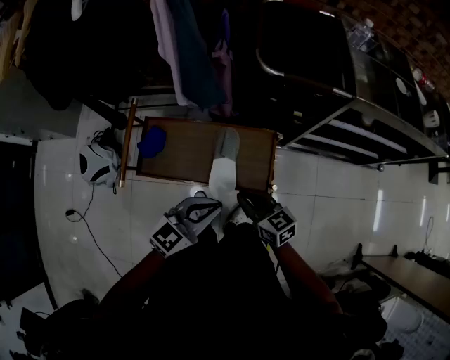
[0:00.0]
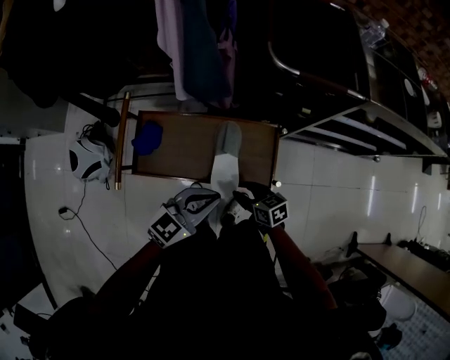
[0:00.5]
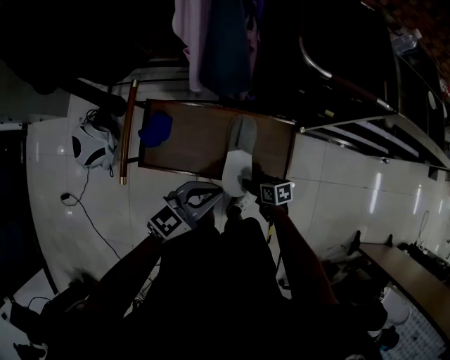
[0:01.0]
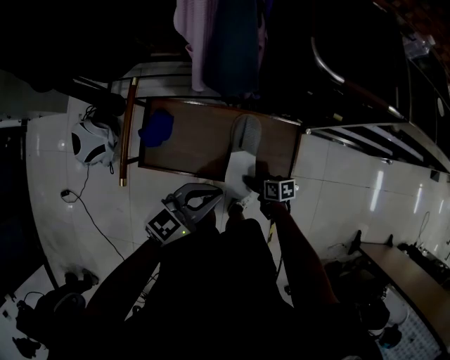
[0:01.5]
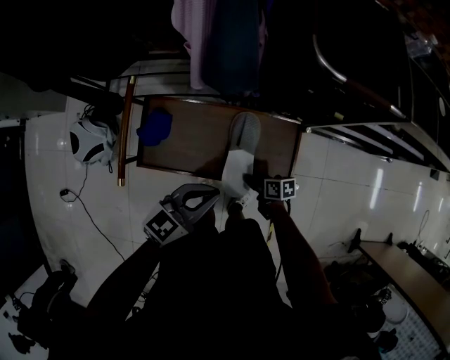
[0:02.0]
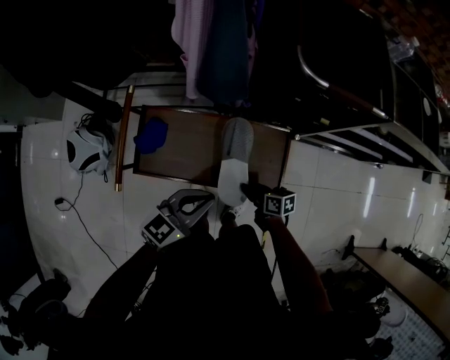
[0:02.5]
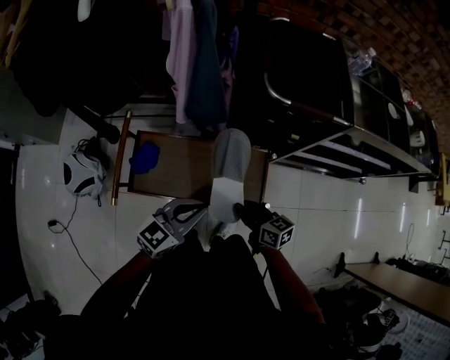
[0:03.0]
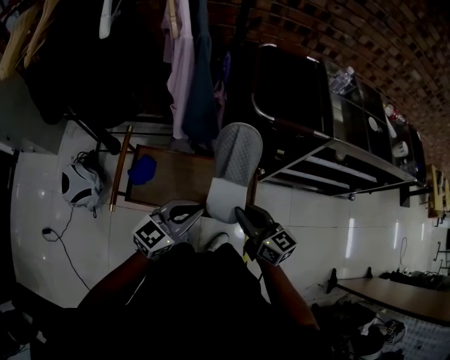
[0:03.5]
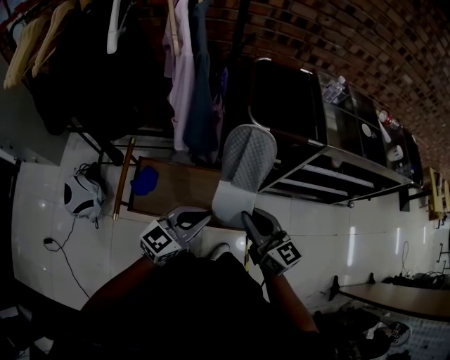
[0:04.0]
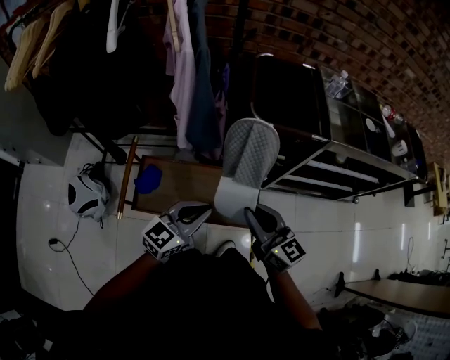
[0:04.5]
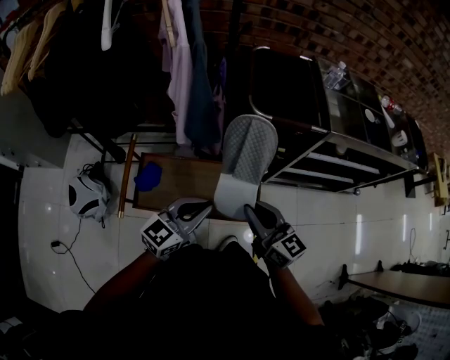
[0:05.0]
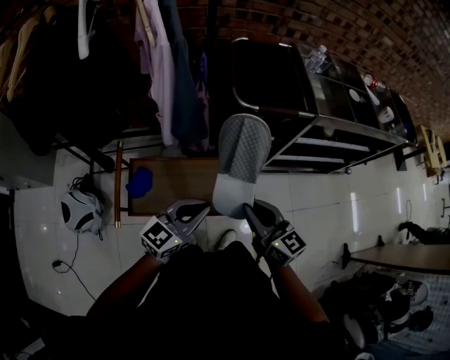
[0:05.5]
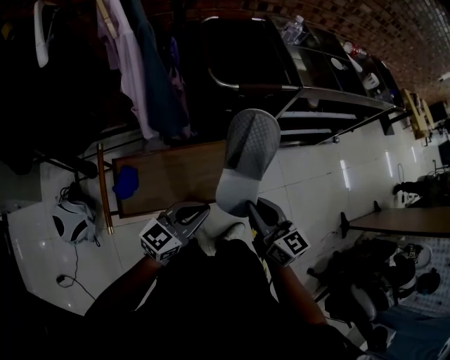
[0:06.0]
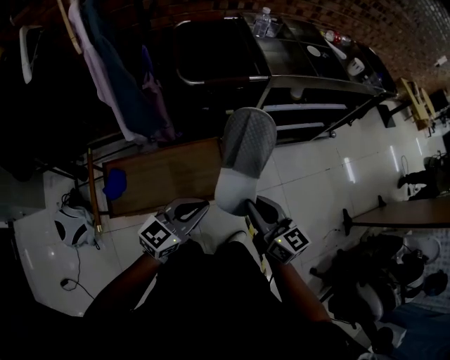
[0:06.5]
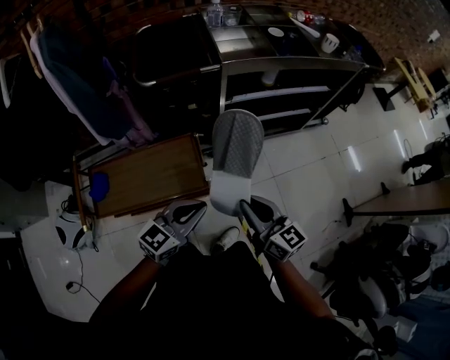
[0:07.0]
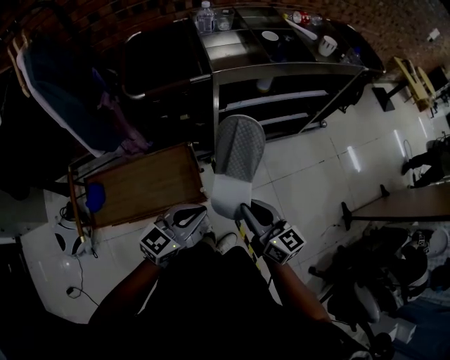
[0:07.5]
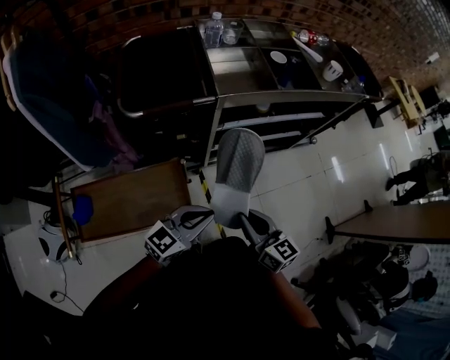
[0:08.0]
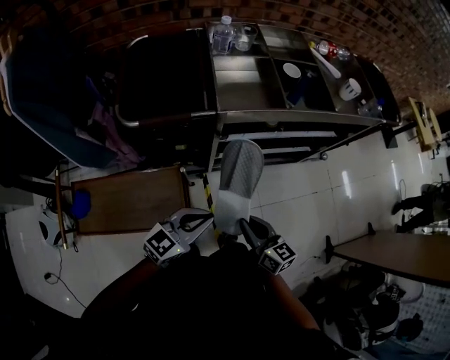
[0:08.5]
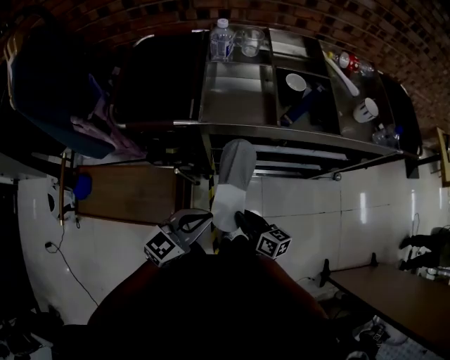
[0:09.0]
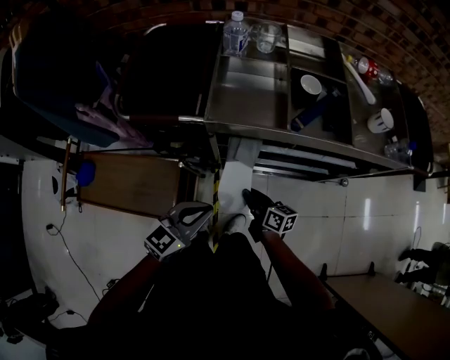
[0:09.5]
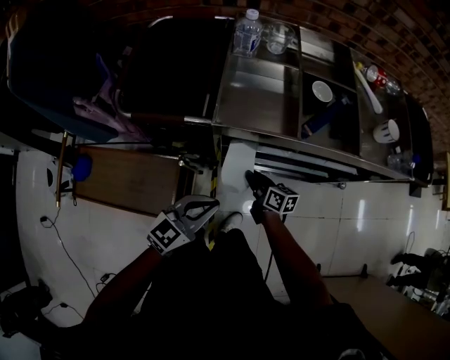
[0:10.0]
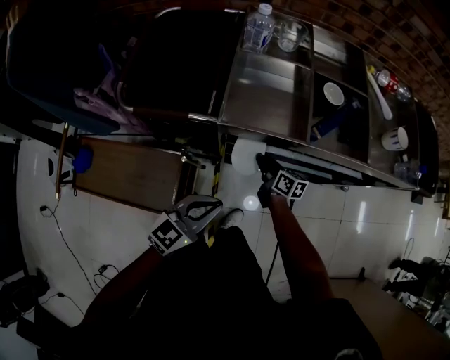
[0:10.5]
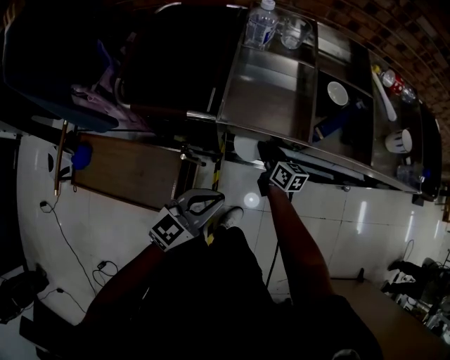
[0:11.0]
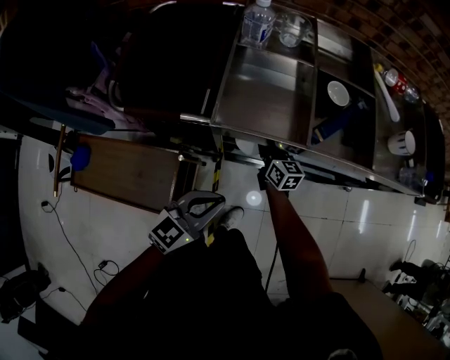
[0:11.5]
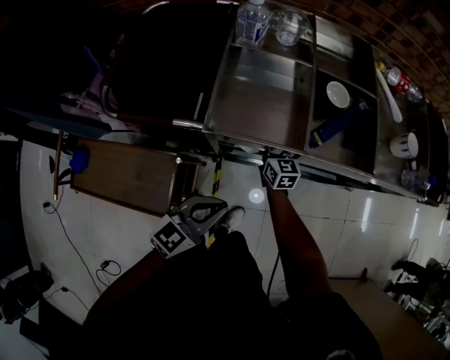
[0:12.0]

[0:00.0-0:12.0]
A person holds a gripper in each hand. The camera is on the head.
0:00.0 to 0:02.0: The left gripper shifts by roughly 15 cm; the right gripper shifts approximately 25 cm downward, rotates roughly 50 degrees, and opens, then closes once more.
0:02.0 to 0:04.0: The left gripper heads upward, covering about 15 cm. Meanwhile the right gripper heads upward, covering some 40 cm, and tilts its fingers about 30 degrees upward.
0:04.0 to 0:06.0: The right gripper changes place by about 5 cm, and rotates about 20 degrees. The left gripper changes place by roughly 5 cm.
0:06.0 to 0:08.0: Both grippers move to the right and forward, some 30 cm.
0:08.0 to 0:10.0: The right gripper travels forward and downward by some 35 cm, and turns by roughly 30 degrees; the left gripper moves forward and to the right, approximately 20 cm, and swivels about 20 degrees.
0:10.0 to 0:12.0: The right gripper is displaced forward by approximately 15 cm, and changes its angle by some 30 degrees, while the left gripper shifts by about 5 cm.

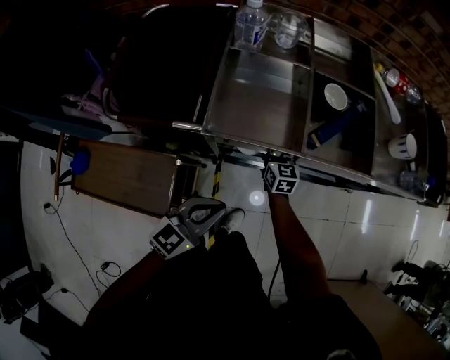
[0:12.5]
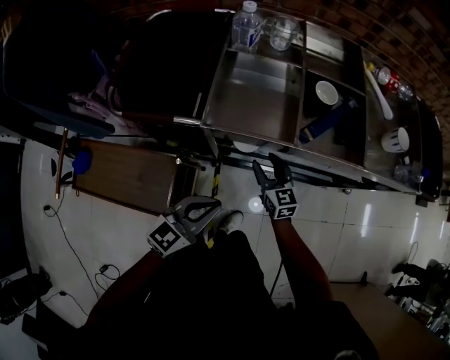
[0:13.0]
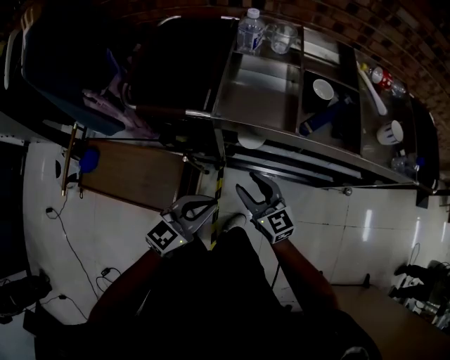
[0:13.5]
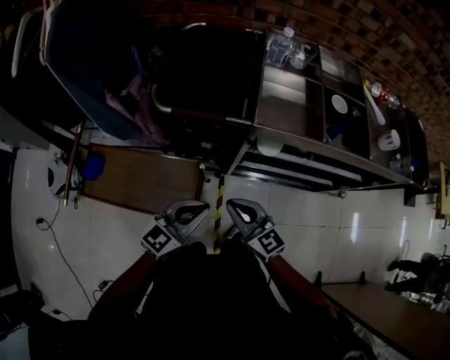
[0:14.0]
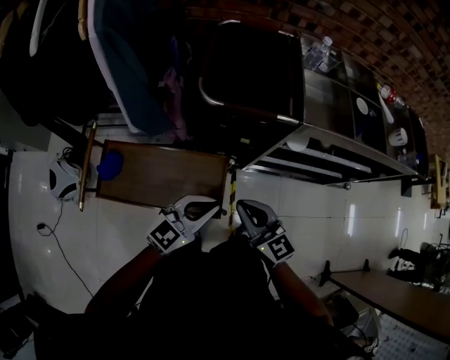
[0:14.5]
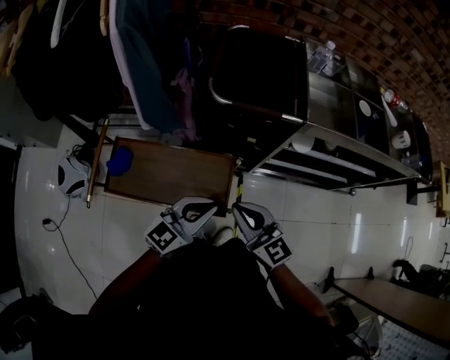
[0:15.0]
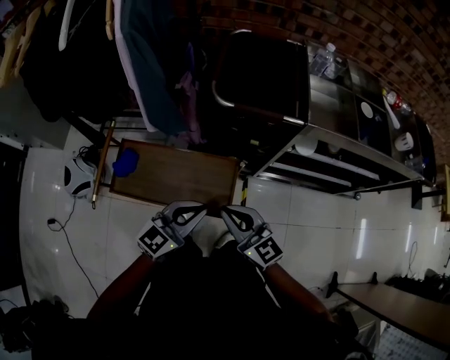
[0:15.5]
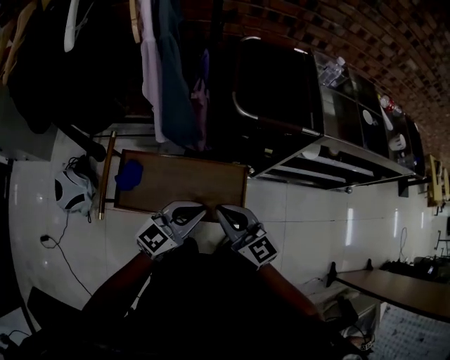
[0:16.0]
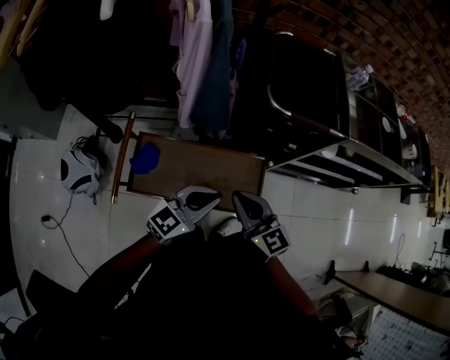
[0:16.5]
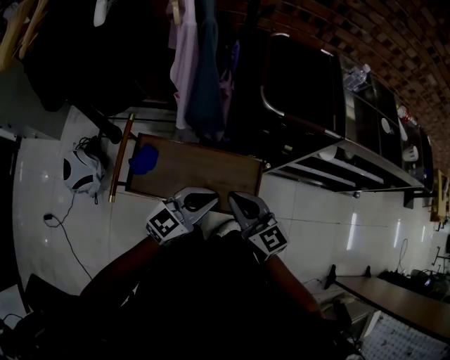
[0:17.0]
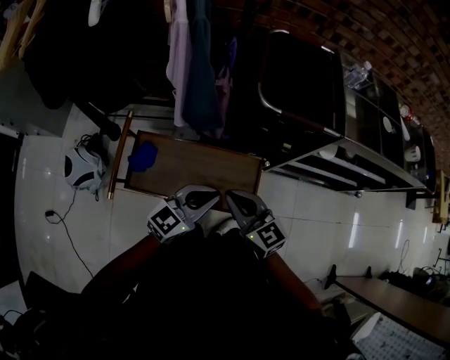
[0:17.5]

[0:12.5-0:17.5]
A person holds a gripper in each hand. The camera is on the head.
0:12.5 to 0:15.0: The left gripper moves to the left and backward, about 35 cm. The right gripper shifts some 60 cm backward, to the left and upward, swivels roughly 30 degrees, and closes up.
0:15.0 to 0:17.5: The two grippers go some 15 cm to the left.

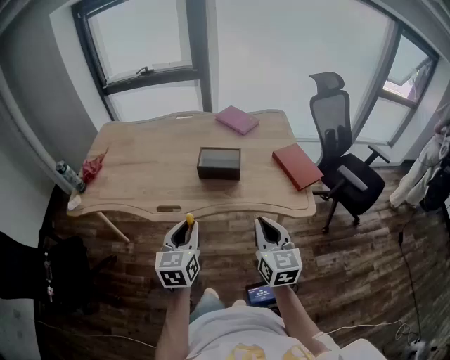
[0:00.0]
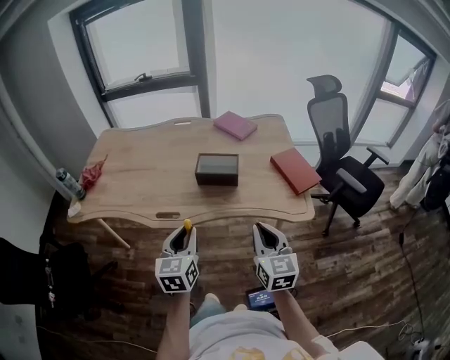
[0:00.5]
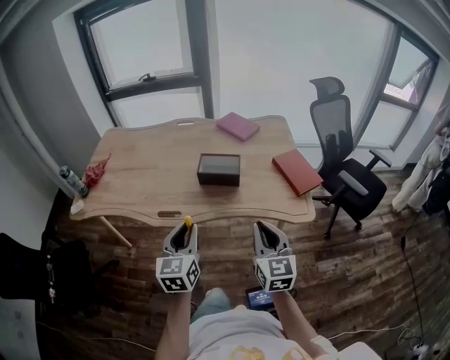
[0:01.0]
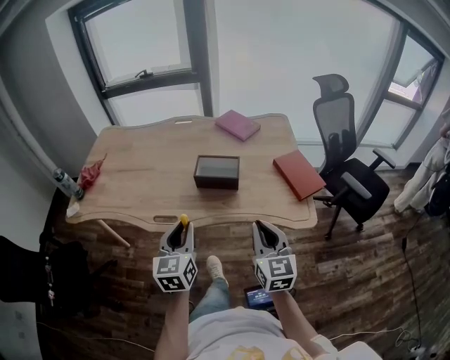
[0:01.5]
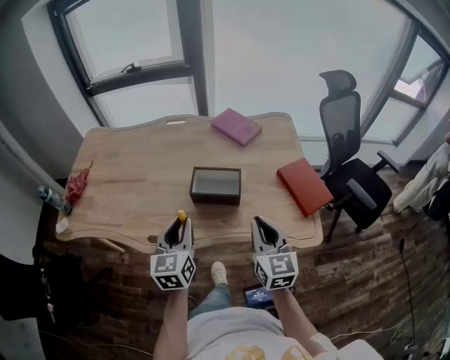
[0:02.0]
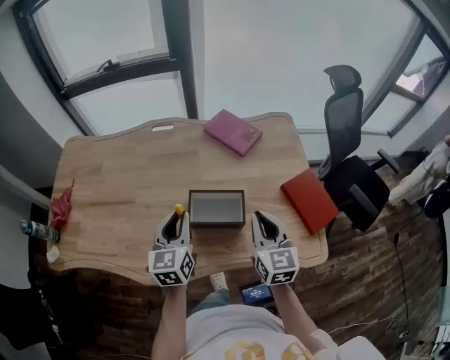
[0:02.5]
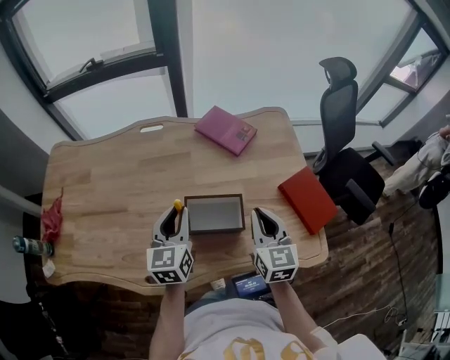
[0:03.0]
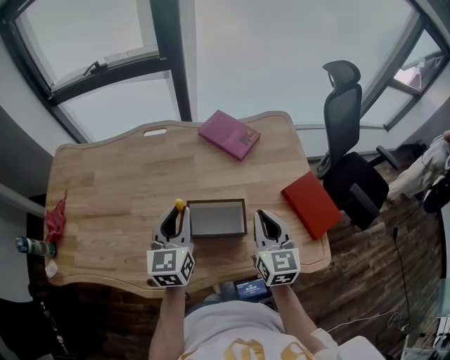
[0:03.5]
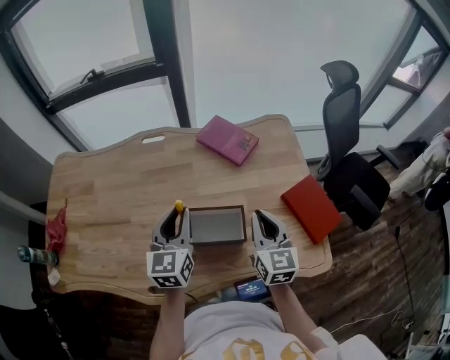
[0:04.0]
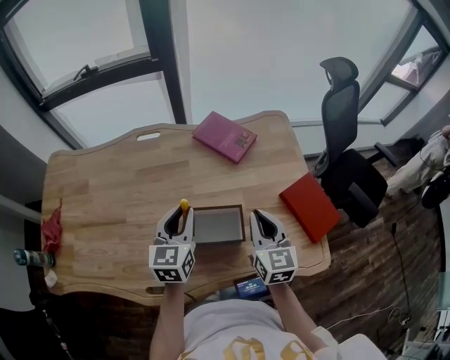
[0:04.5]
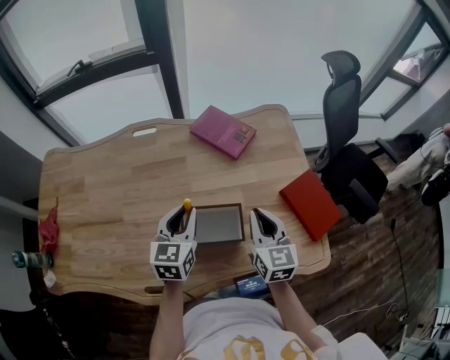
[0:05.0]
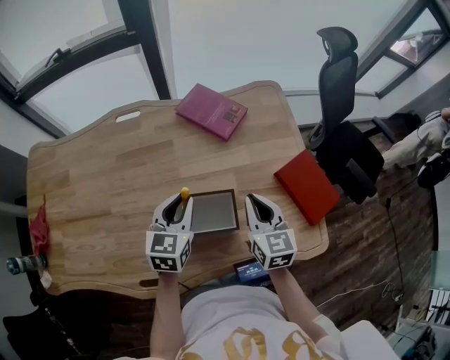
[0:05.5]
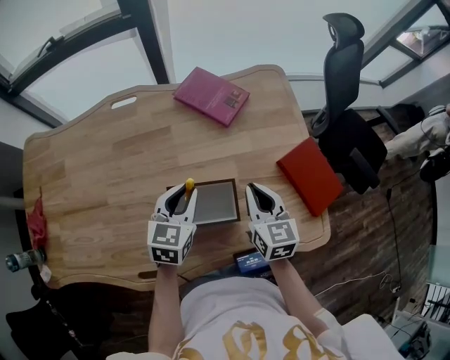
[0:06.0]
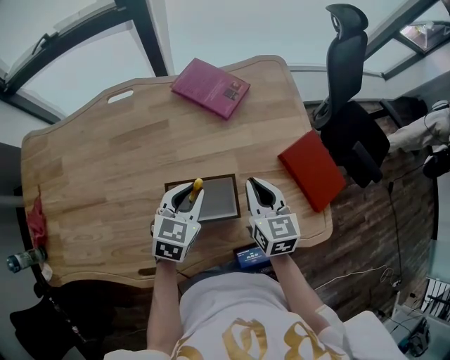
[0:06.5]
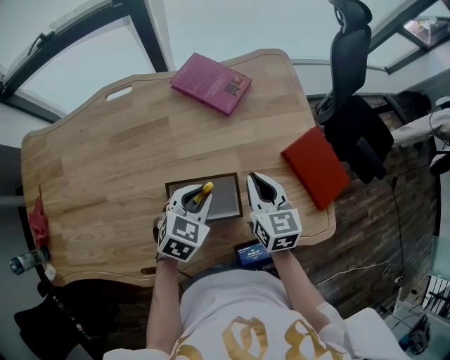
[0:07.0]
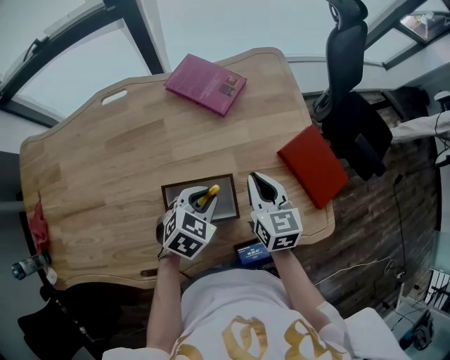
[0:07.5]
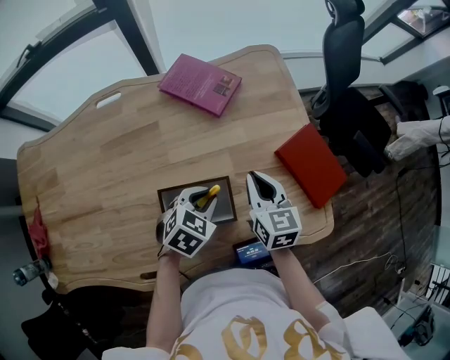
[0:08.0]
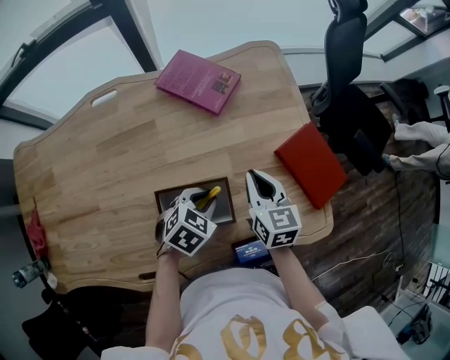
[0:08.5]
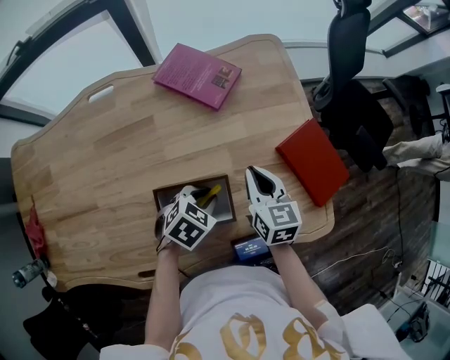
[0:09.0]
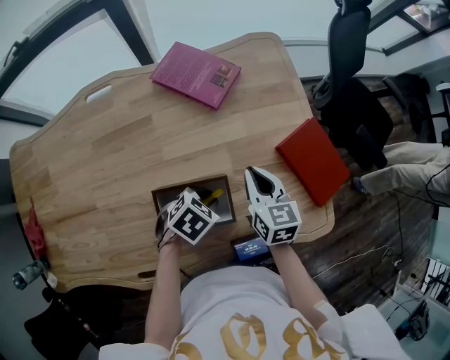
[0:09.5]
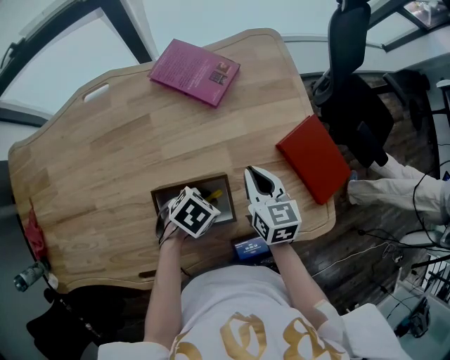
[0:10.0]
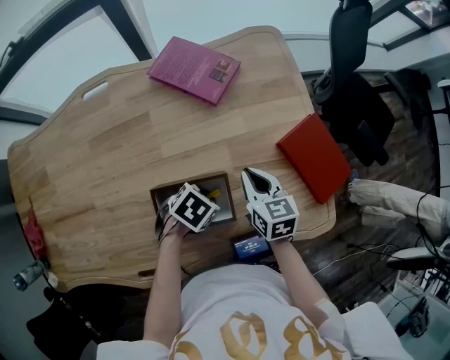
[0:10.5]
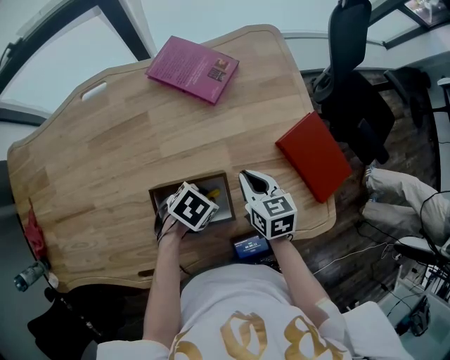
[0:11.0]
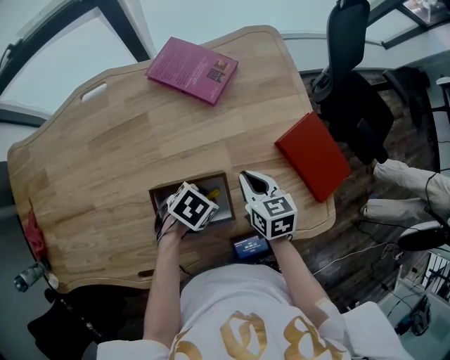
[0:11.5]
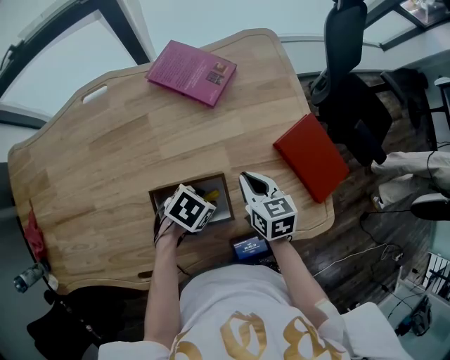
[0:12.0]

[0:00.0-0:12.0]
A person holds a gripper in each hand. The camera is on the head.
0:00.0 to 0:02.0: Both grippers travel together forward, approximately 15 cm.
0:02.0 to 0:04.0: The two grippers go roughly 20 cm forward.
0:04.0 to 0:06.0: The right gripper goes roughly 10 cm downward, while the left gripper heads downward and to the right, covering about 10 cm, and swivels about 30 degrees.
0:06.0 to 0:08.0: The left gripper moves to the right and downward, some 10 cm, and swivels about 40 degrees.
0:08.0 to 0:10.0: The left gripper goes about 5 cm downward, and changes its angle by about 30 degrees.
0:10.0 to 0:12.0: The left gripper opens.
